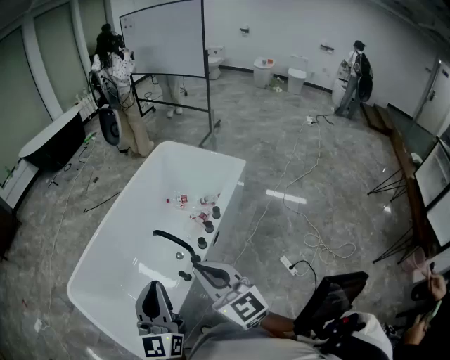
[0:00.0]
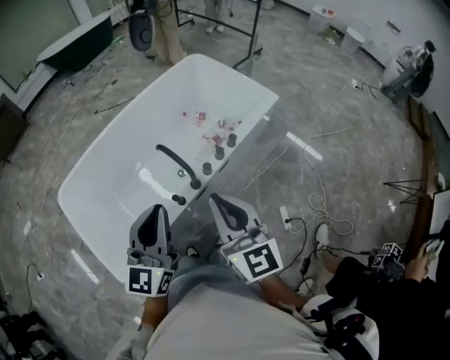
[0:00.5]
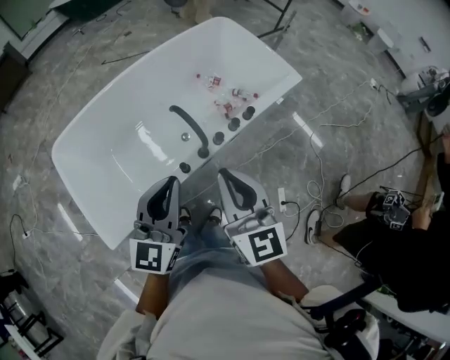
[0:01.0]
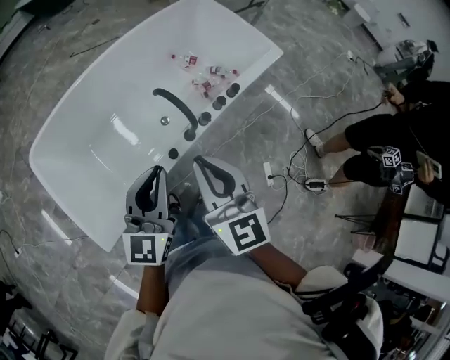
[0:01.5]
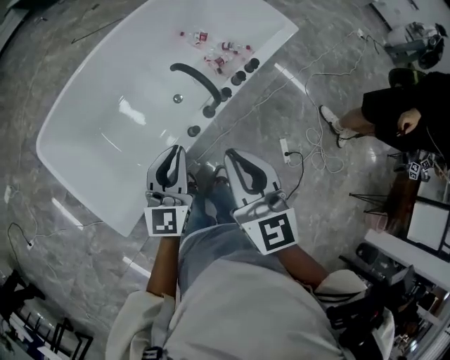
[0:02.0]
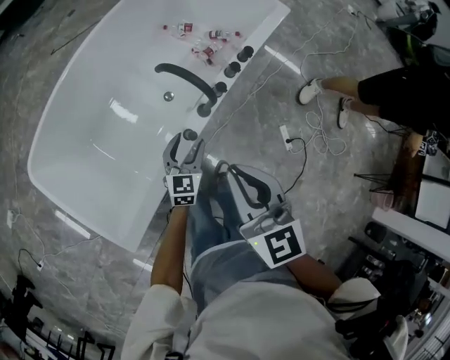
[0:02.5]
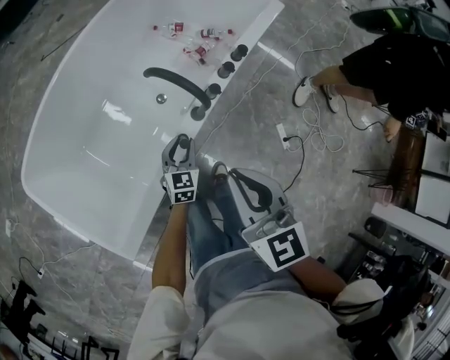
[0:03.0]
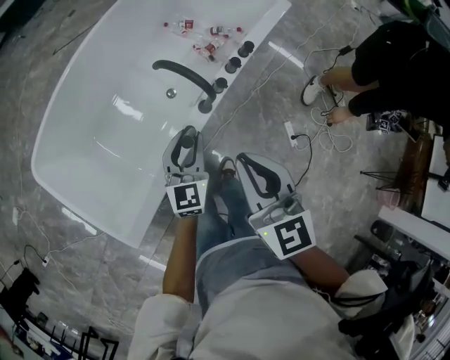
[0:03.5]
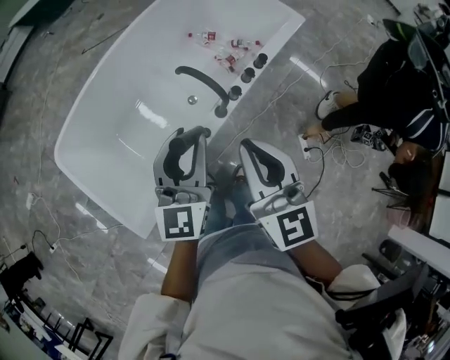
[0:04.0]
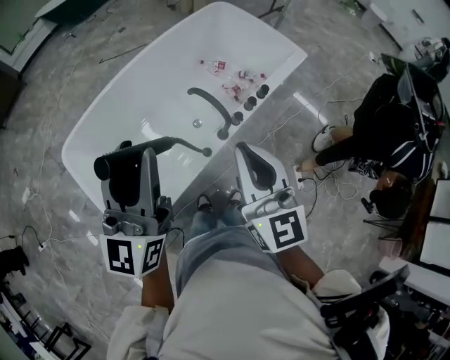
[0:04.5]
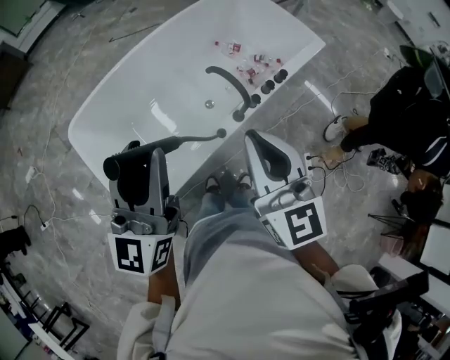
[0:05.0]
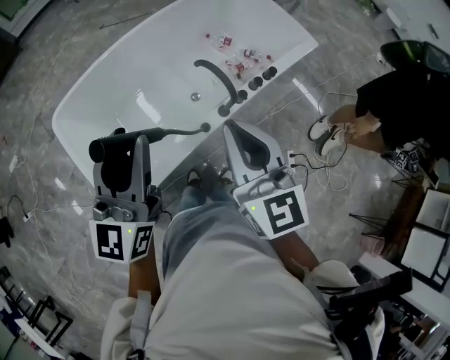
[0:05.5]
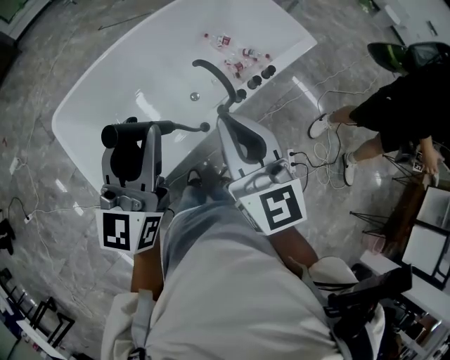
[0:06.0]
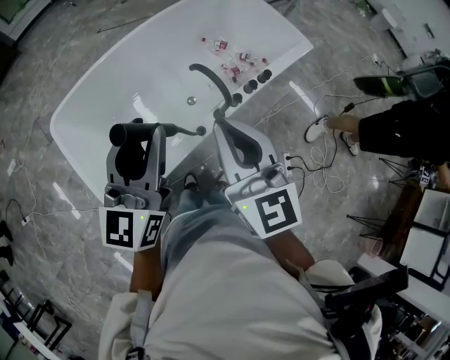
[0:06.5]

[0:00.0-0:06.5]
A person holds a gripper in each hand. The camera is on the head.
0:00.0 to 0:02.0: Both grippers move downward, some 30 cm.
0:02.0 to 0:04.5: The left gripper shifts some 25 cm upward, and opens its fingers. The right gripper travels upward by some 10 cm.
0:04.5 to 0:06.5: The right gripper moves to the left, roughly 5 cm; the left gripper shifts roughly 5 cm downward.

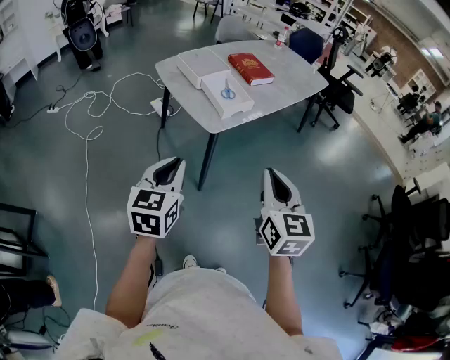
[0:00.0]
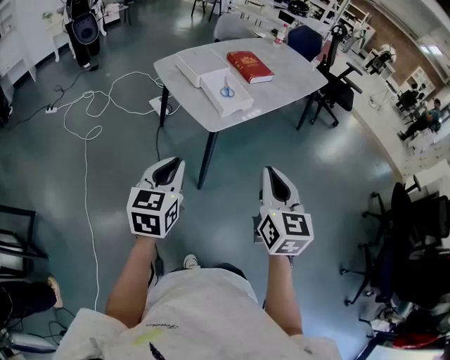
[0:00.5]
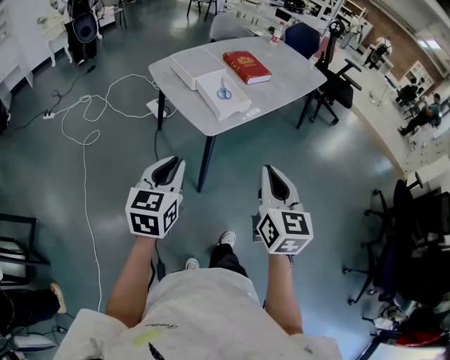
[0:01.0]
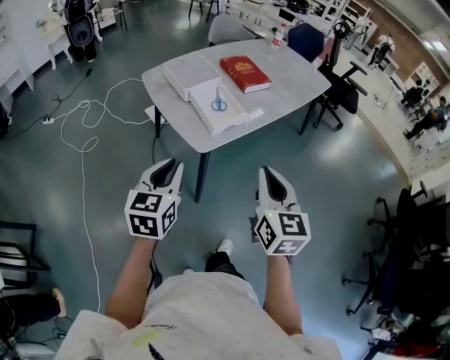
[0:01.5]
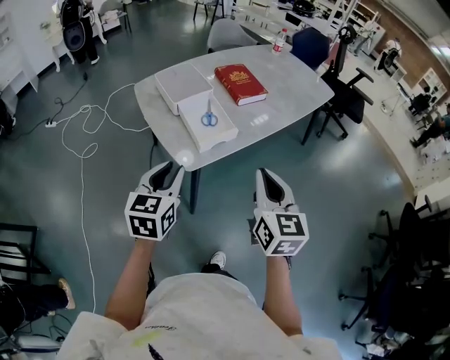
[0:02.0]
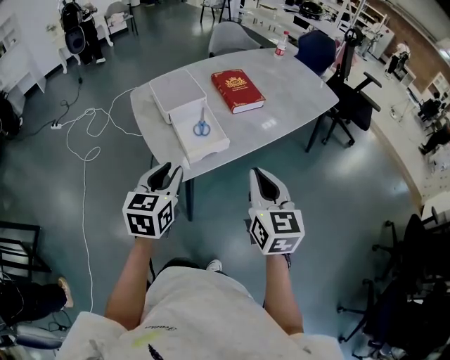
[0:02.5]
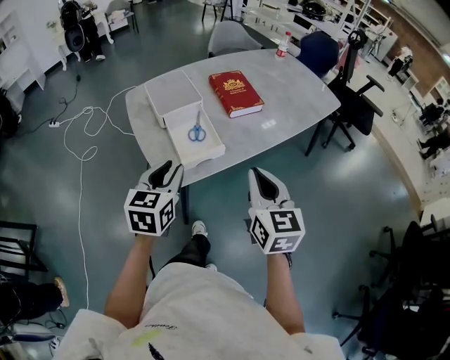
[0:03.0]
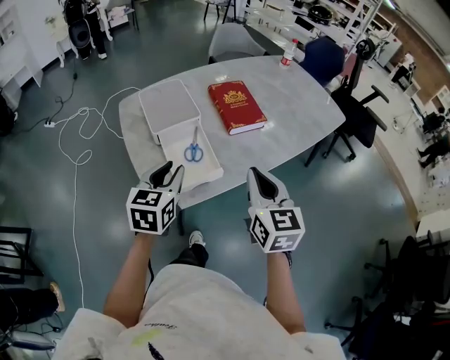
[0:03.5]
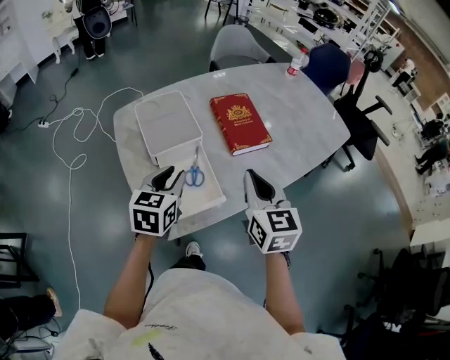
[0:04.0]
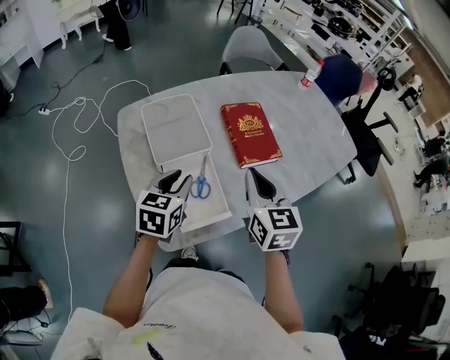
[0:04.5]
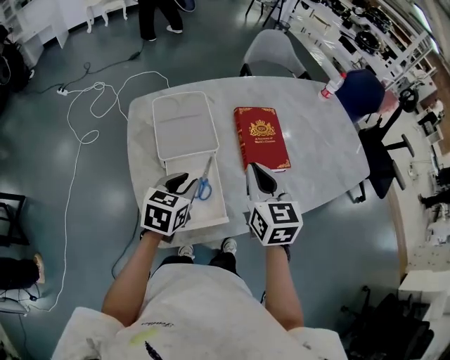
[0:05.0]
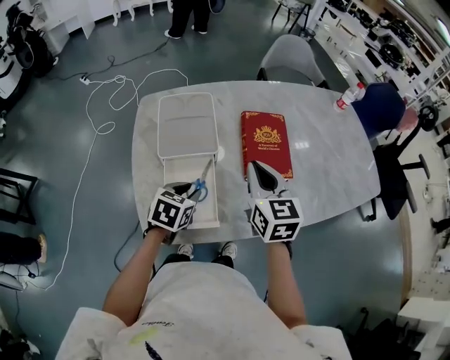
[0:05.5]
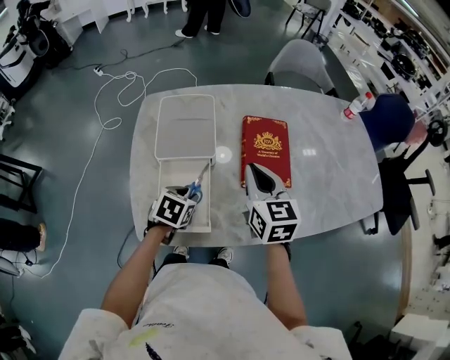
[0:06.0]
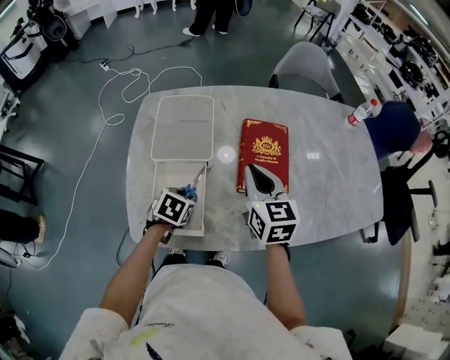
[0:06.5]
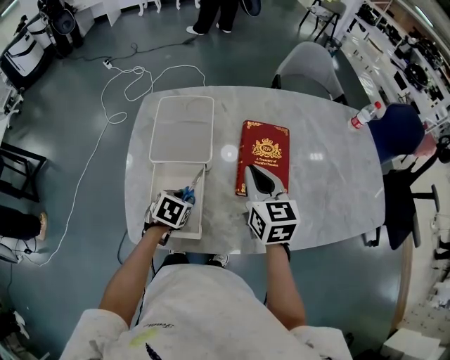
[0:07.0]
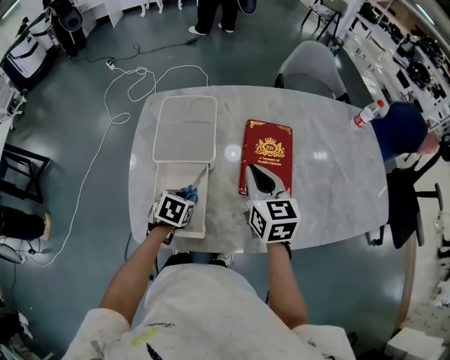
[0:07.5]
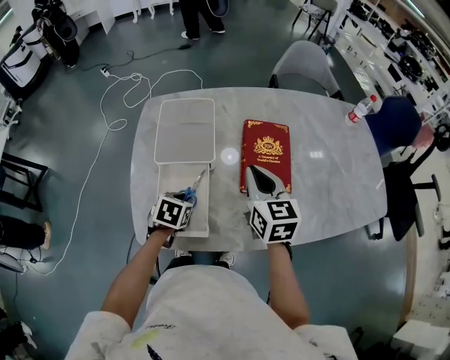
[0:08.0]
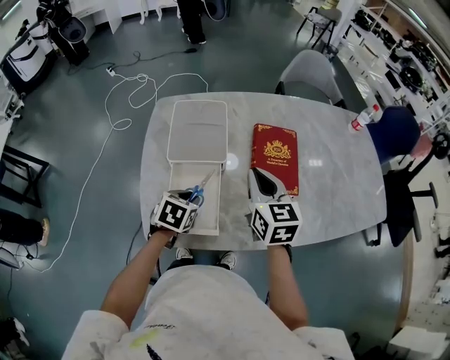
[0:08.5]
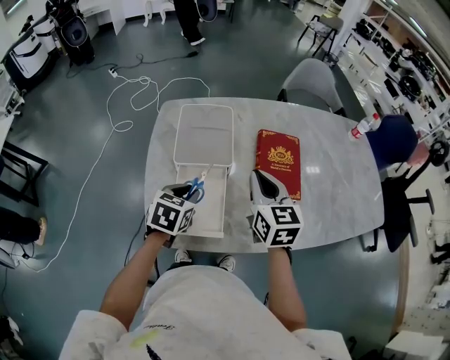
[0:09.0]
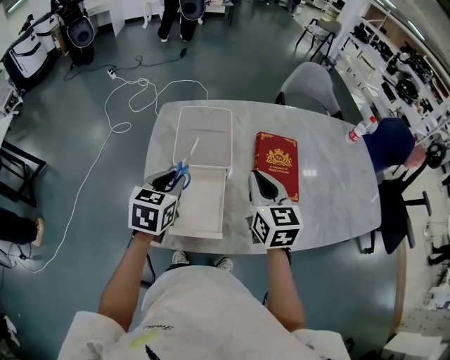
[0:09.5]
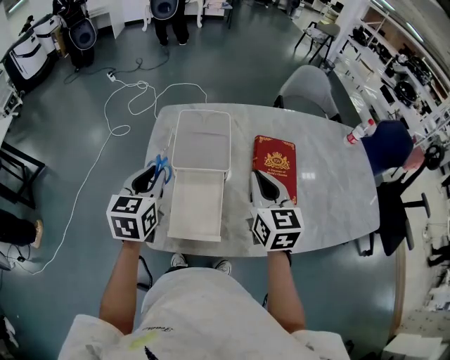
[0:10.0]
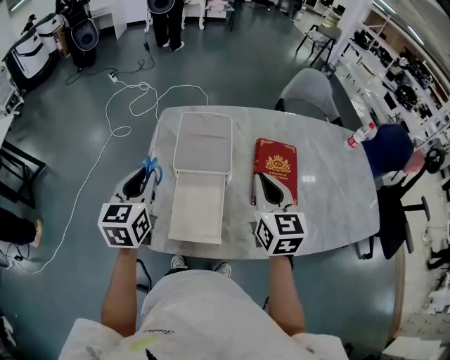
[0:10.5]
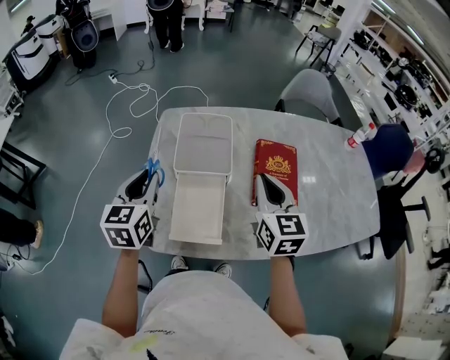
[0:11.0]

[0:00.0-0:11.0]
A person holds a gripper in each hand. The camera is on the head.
0:00.0 to 0:02.0: The left gripper moves forward and to the right, approximately 20 cm; the right gripper shifts approximately 20 cm forward.
0:02.0 to 0:03.5: Both grippers move forward, about 20 cm.
0:03.5 to 0:05.5: The left gripper is displaced forward and downward by some 20 cm, and changes its angle by approximately 30 degrees; the right gripper is displaced forward by approximately 25 cm, and changes its angle by about 20 degrees.
0:05.5 to 0:07.5: The right gripper moves forward, about 5 cm, while the left gripper moves downward, about 10 cm.
0:07.5 to 0:09.0: The right gripper moves to the left, about 5 cm. The left gripper heads upward, covering about 10 cm.
0:09.0 to 0:11.0: The left gripper heads upward and to the left, covering approximately 15 cm, and turns by about 30 degrees.

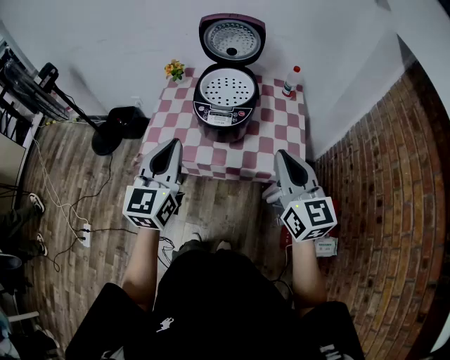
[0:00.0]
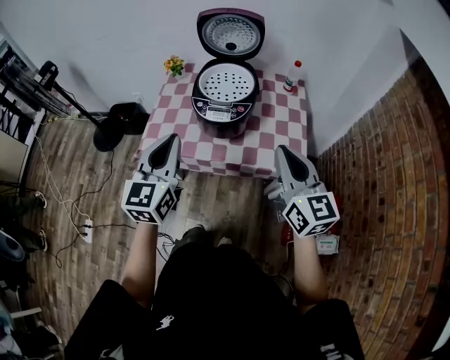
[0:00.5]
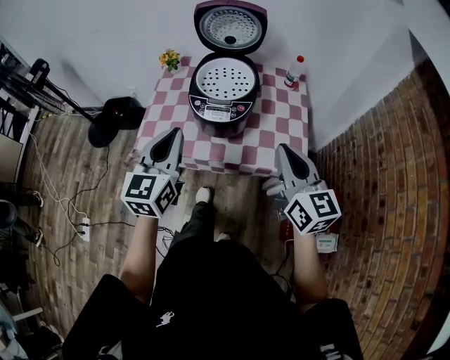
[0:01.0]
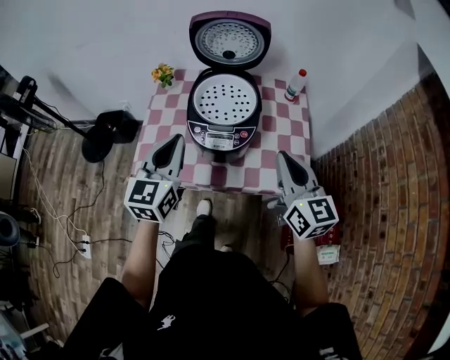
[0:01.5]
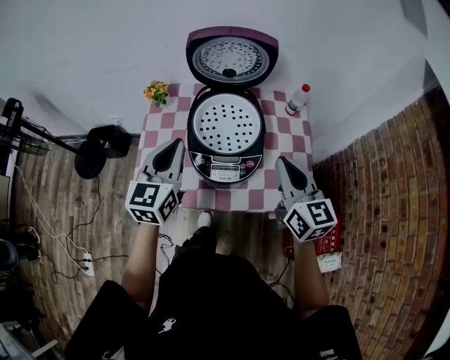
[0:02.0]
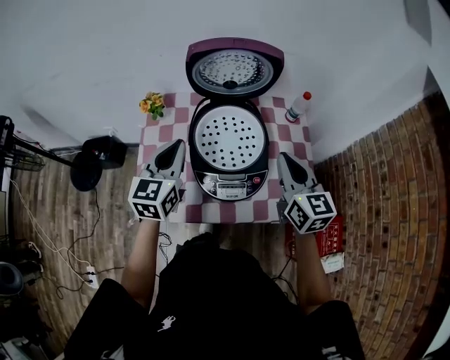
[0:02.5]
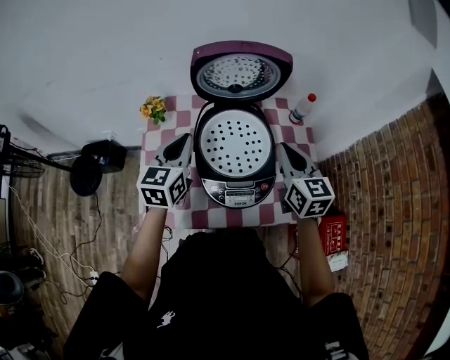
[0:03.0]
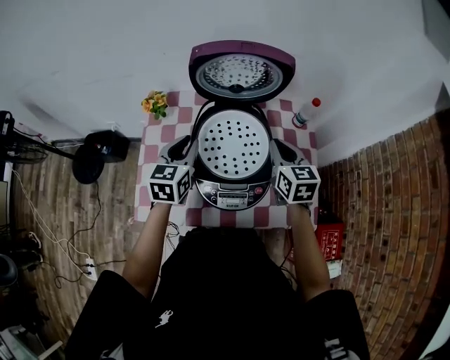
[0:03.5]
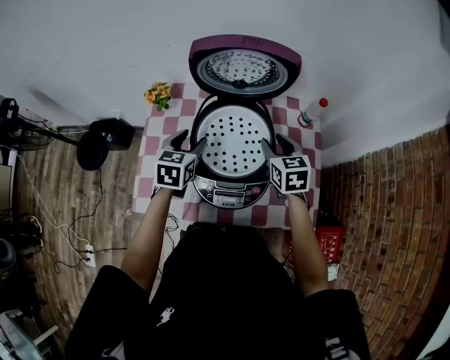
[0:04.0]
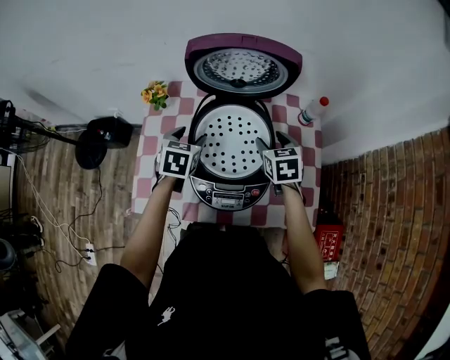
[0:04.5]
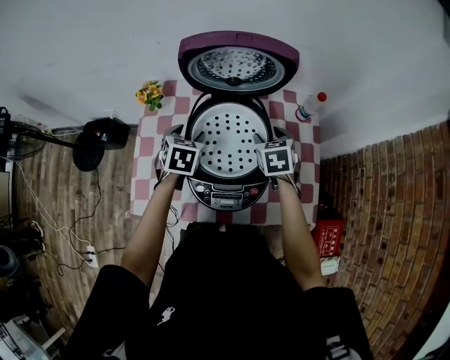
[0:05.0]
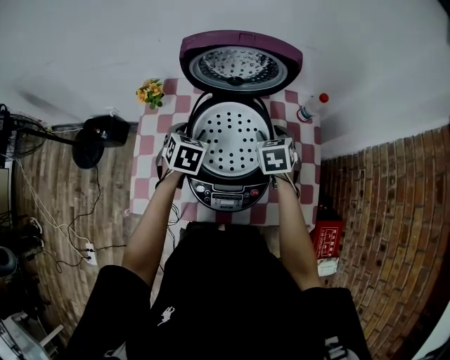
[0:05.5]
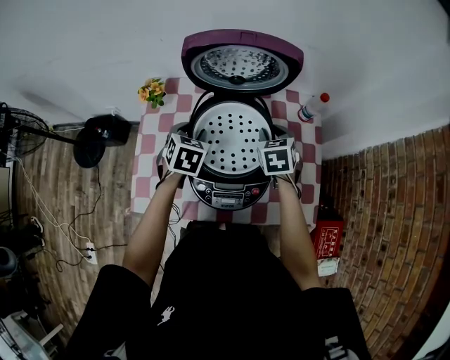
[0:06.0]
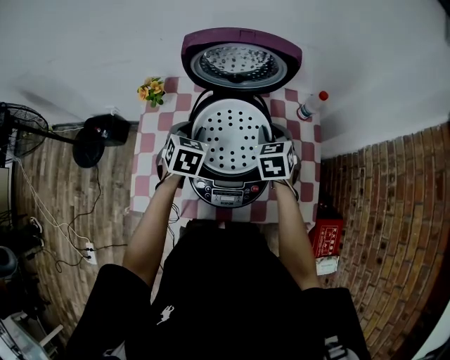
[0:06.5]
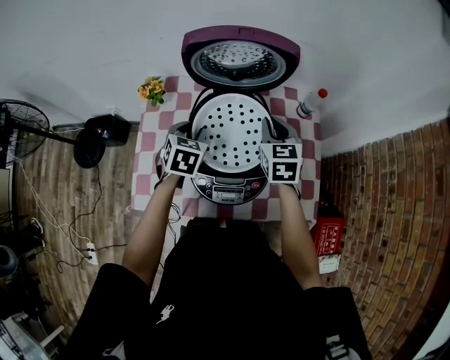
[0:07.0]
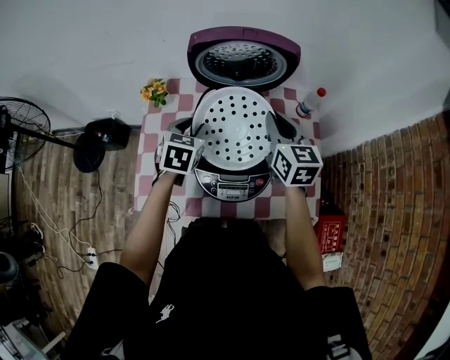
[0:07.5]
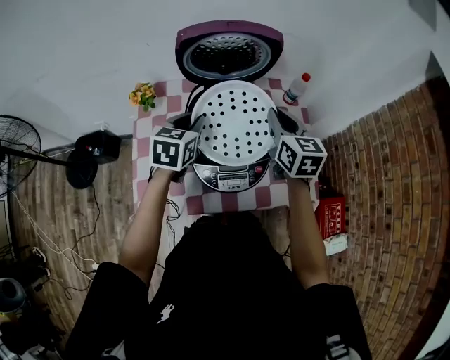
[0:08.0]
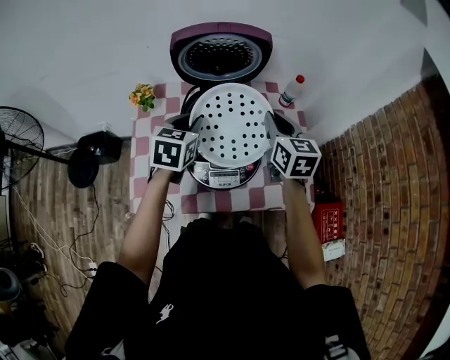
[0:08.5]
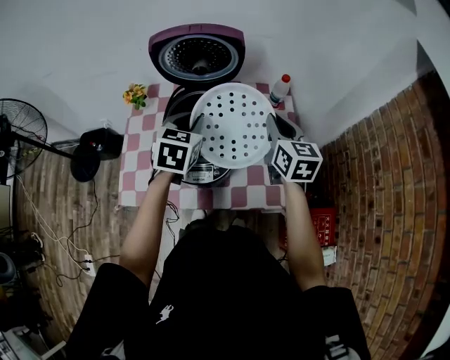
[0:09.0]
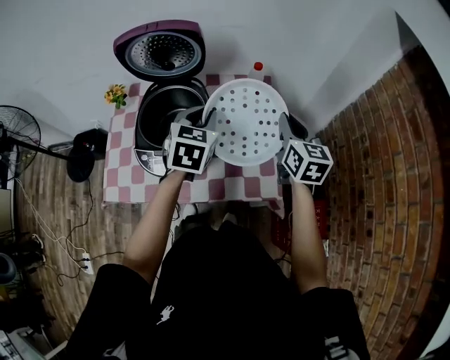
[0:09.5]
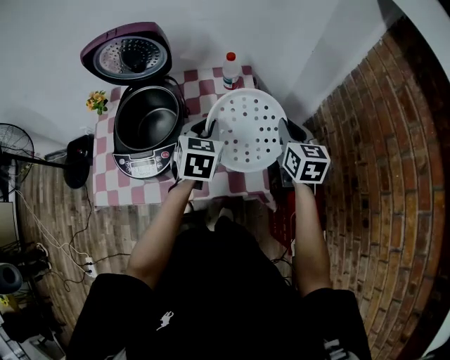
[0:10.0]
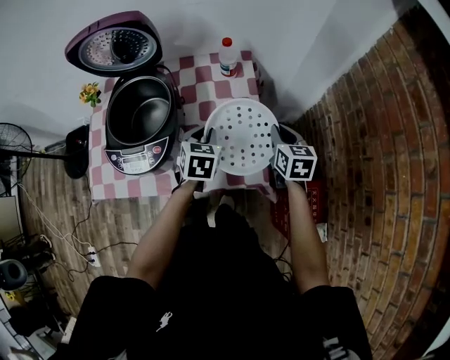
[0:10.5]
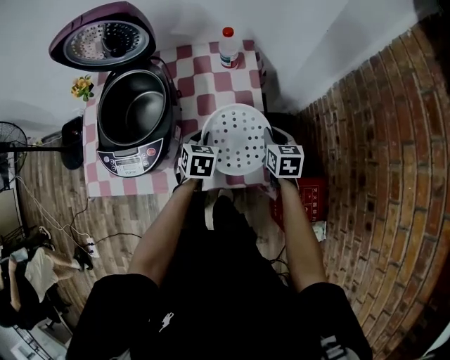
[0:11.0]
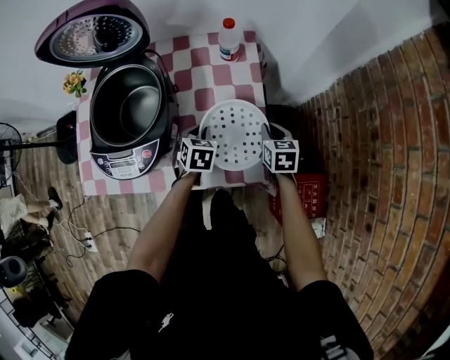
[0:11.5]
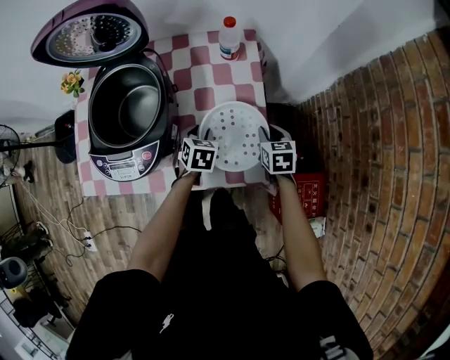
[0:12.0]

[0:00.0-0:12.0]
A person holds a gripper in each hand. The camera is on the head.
0:00.0 to 0:02.0: The two grippers go roughly 25 cm forward.
0:02.0 to 0:04.0: The two grippers go approximately 20 cm forward and downward. The left gripper changes its angle by roughly 30 degrees, and opens its fingers; the right gripper swivels some 30 degrees, and opens its fingers.
0:06.0 to 0:08.0: The right gripper is displaced upward by about 10 cm, swivels about 30 degrees, and closes. The left gripper moves upward, roughly 10 cm, swivels some 20 degrees, and closes its fingers.
0:08.0 to 0:10.0: The grippers both shift to the right by approximately 30 cm.
0:10.0 to 0:12.0: The two grippers go roughly 25 cm downward. The right gripper turns by some 30 degrees; the left gripper rotates roughly 20 degrees.
